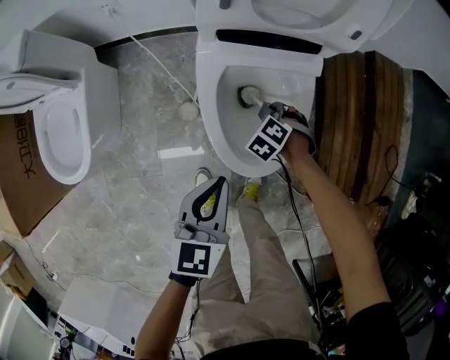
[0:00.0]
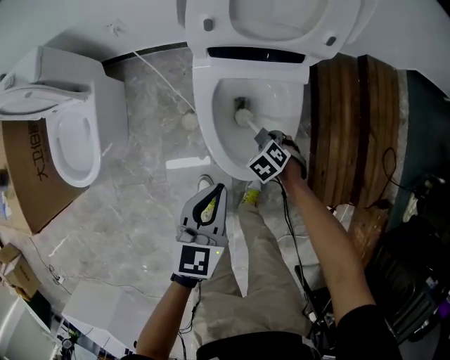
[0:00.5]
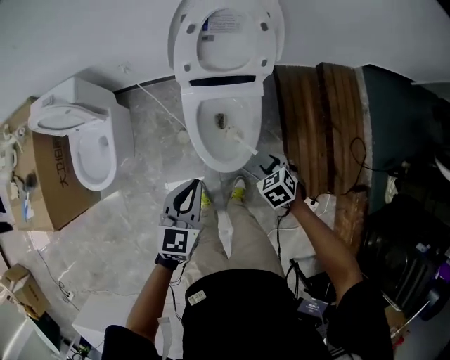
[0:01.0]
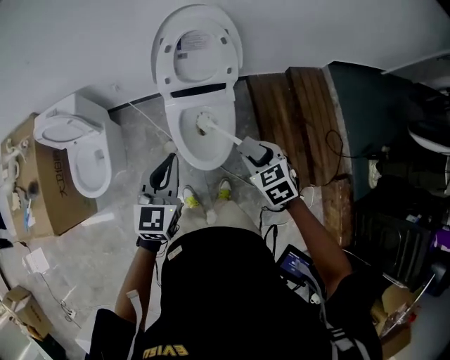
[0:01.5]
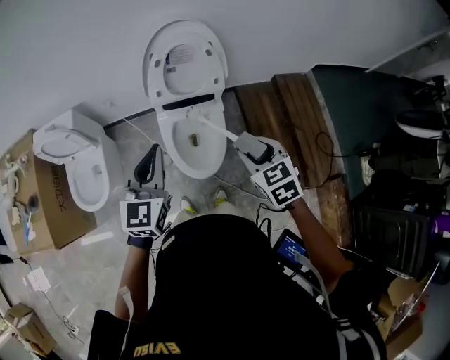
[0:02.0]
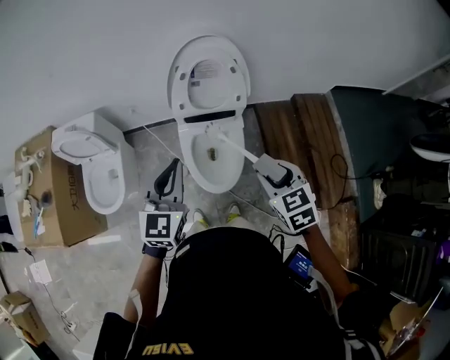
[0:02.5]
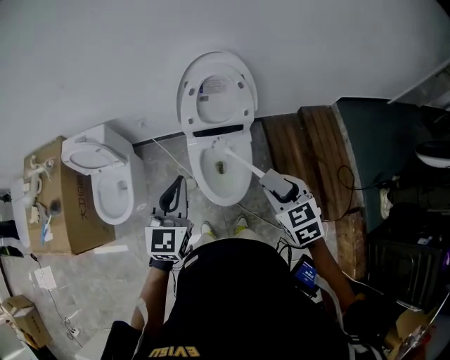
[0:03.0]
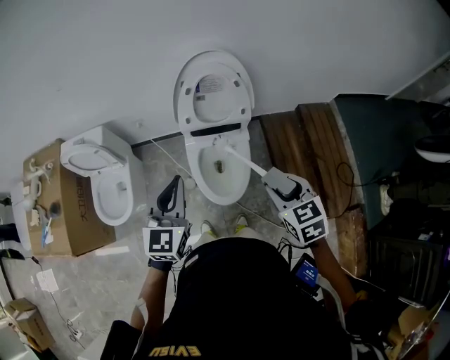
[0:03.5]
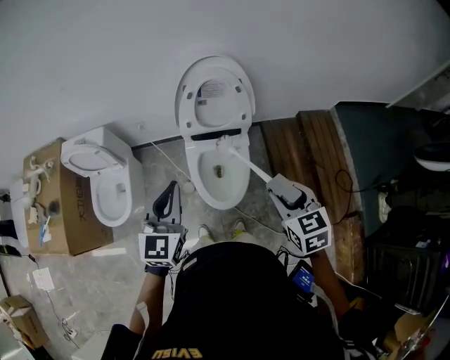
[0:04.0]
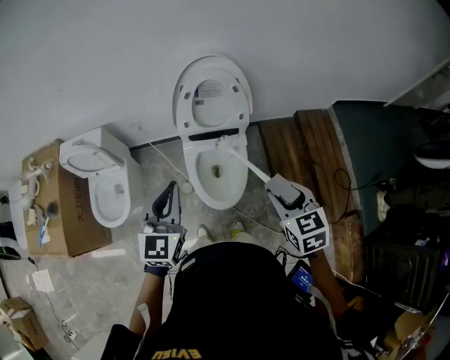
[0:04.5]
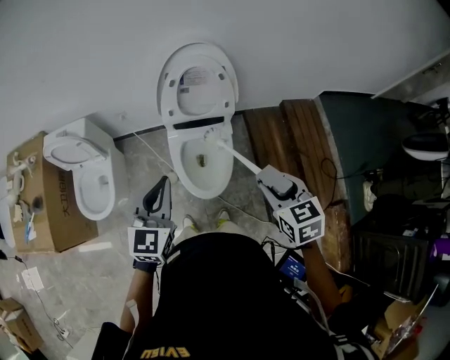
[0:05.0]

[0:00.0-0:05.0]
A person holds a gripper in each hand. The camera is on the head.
0:00.0 to 0:02.5: The left gripper is displaced upward by some 40 cm, and turns by about 30 degrees.

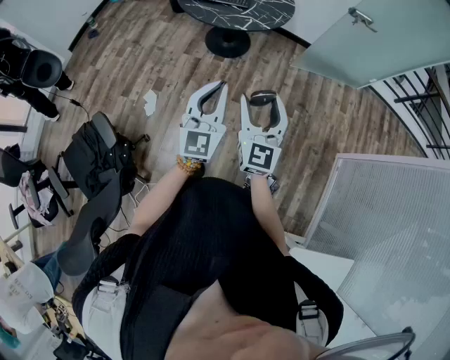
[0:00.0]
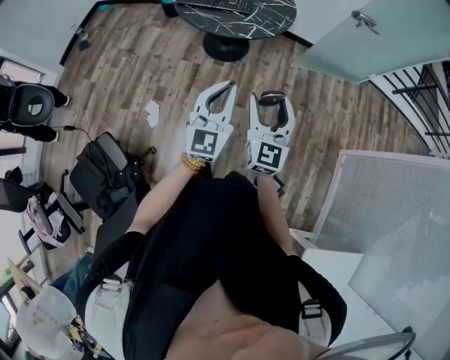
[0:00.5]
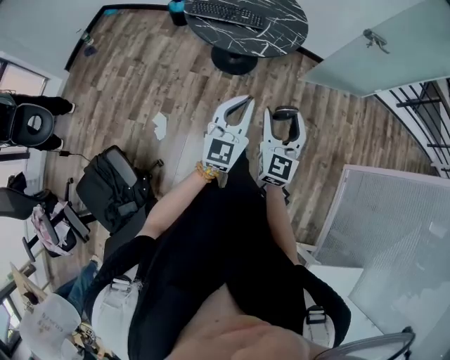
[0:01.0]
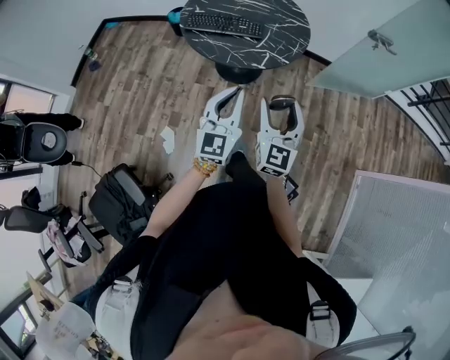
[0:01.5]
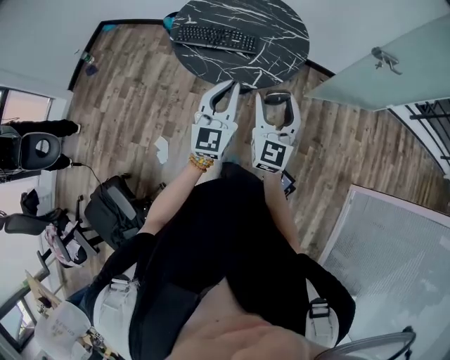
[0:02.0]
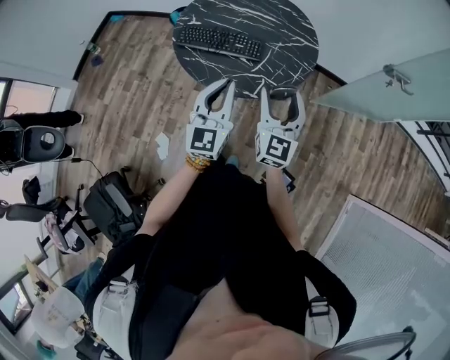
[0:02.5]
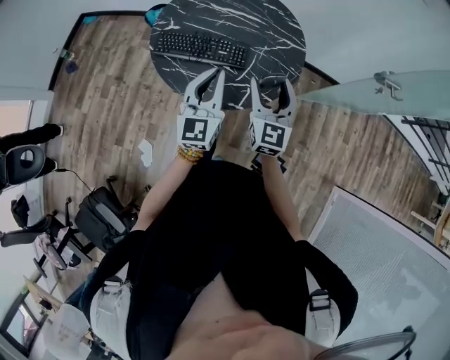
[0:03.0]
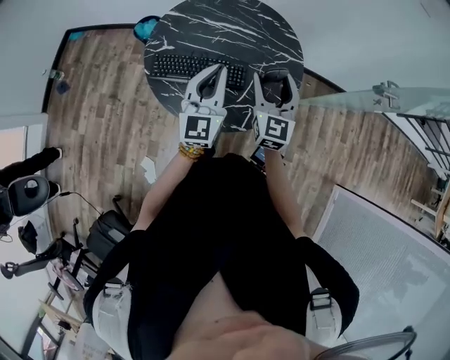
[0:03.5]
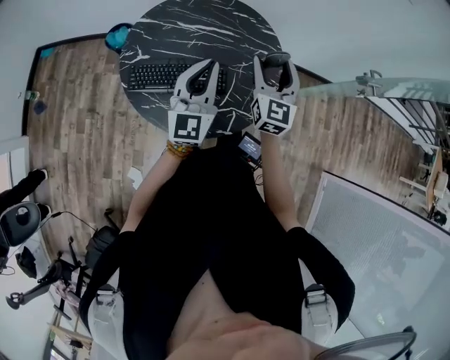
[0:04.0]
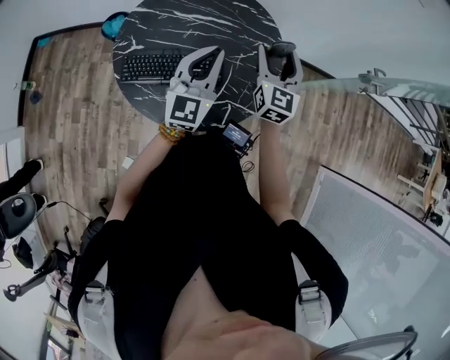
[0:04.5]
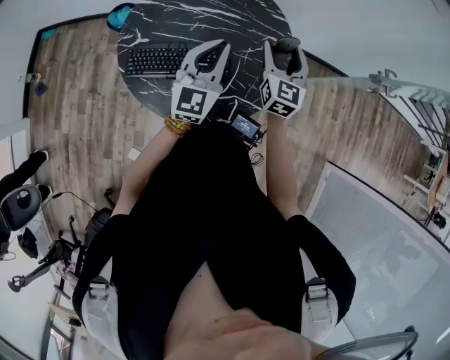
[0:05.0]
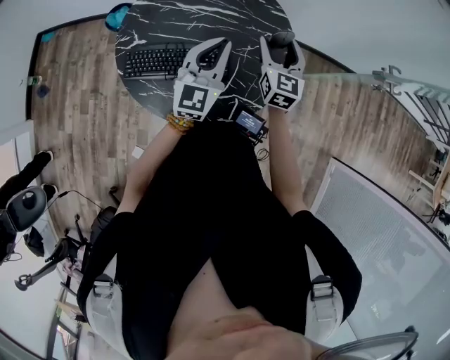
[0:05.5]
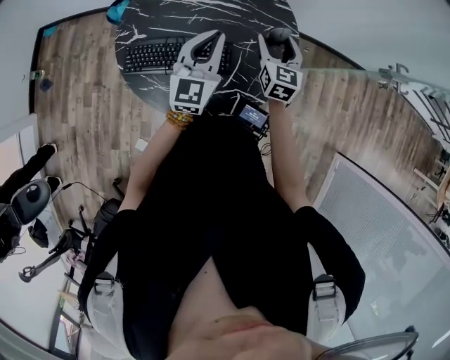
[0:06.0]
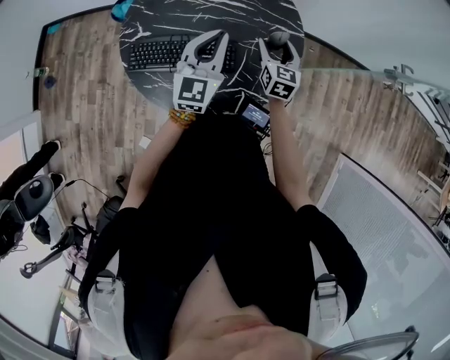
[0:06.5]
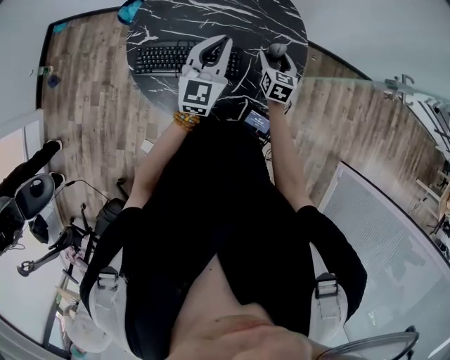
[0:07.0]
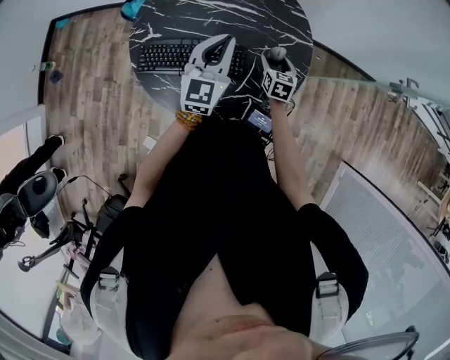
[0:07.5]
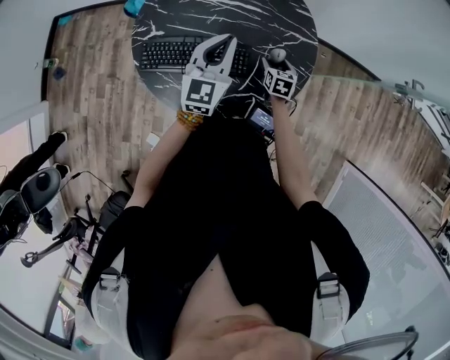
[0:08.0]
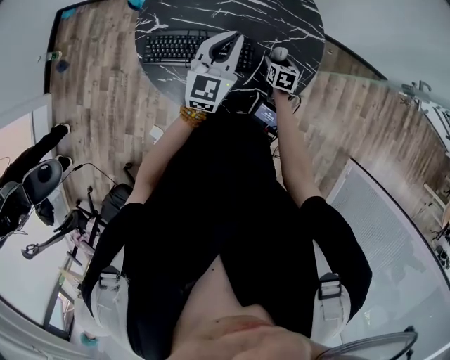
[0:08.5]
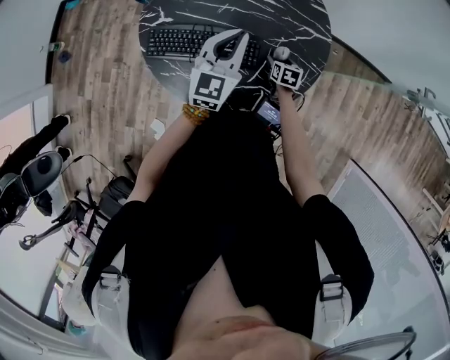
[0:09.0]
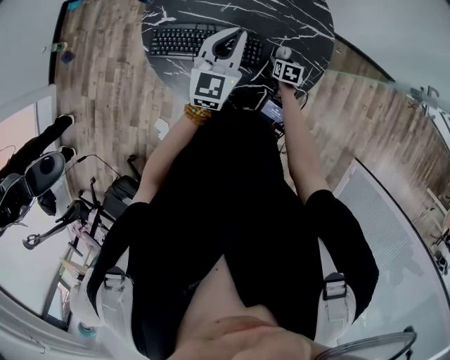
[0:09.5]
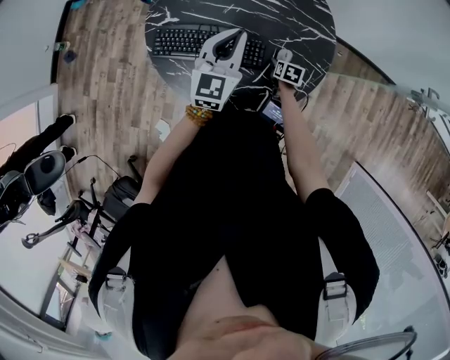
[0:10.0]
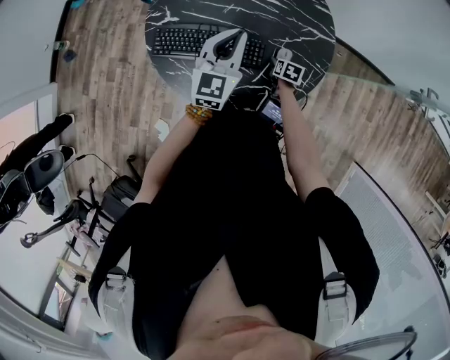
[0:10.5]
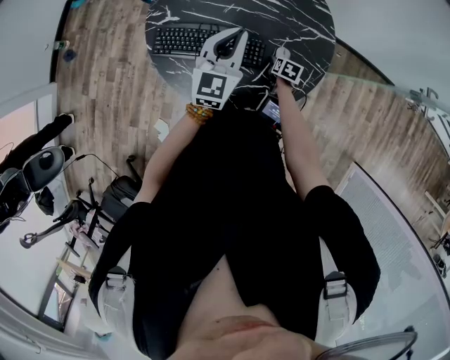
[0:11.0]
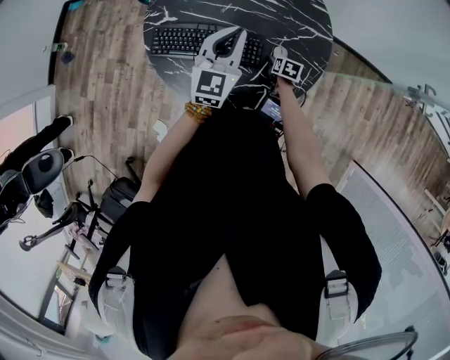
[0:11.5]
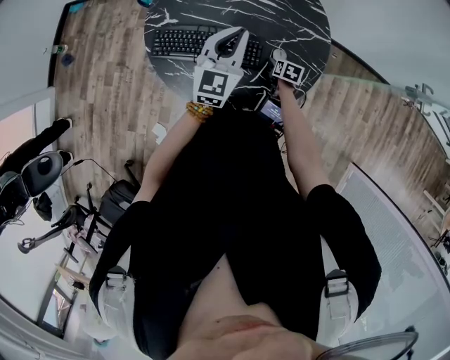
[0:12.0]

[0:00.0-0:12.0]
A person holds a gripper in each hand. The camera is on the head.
0:00.0 to 0:02.0: The two grippers go some 40 cm forward.
0:02.0 to 0:04.0: The two grippers go about 35 cm forward.
0:04.0 to 0:06.0: The right gripper moves downward and forward, approximately 15 cm. The left gripper shifts about 10 cm forward and downward.
0:06.0 to 0:08.0: The right gripper is displaced downward by roughly 20 cm, and turns by some 30 degrees.
0:08.0 to 0:10.0: The right gripper goes some 10 cm downward.
0:10.0 to 0:12.0: There are only small adjustments of the grippers.

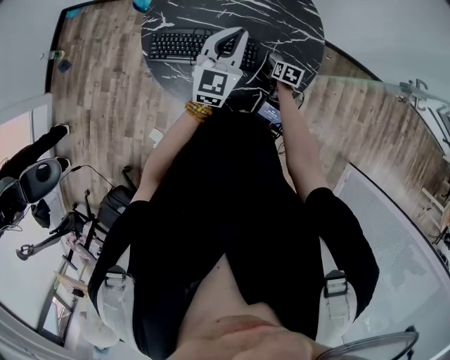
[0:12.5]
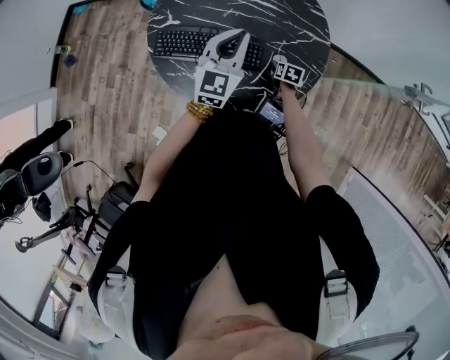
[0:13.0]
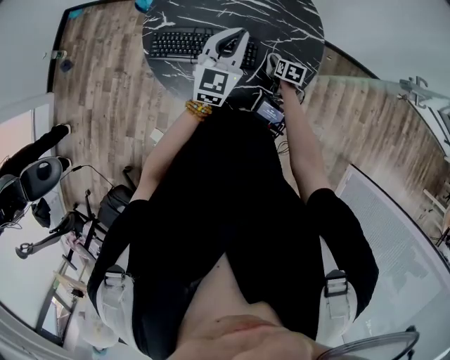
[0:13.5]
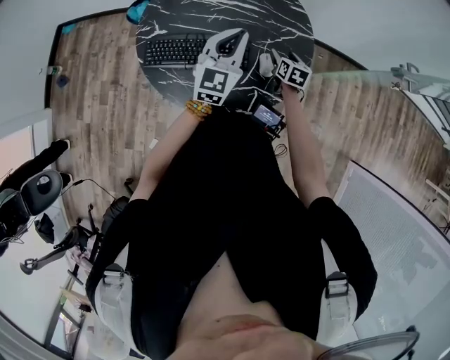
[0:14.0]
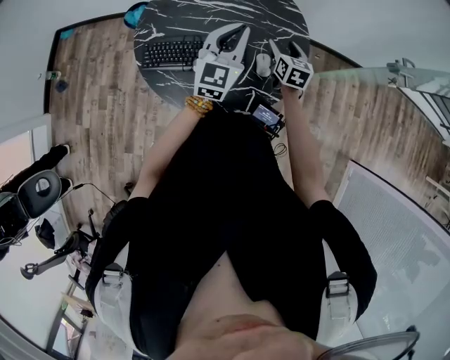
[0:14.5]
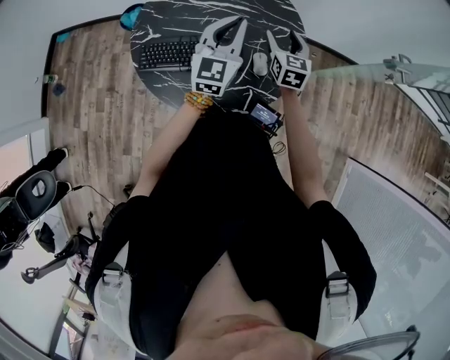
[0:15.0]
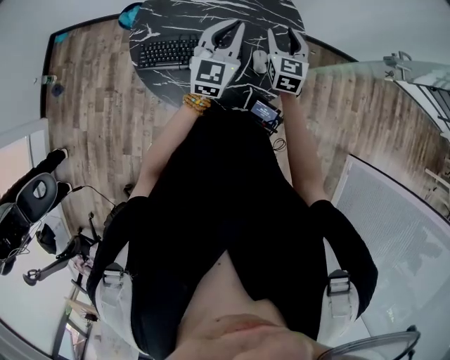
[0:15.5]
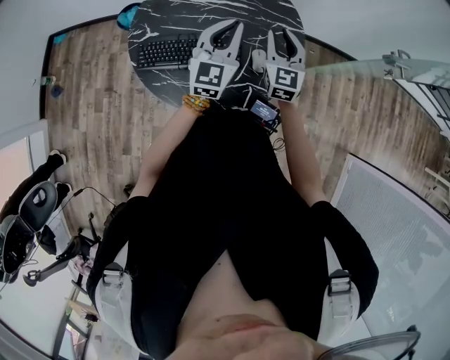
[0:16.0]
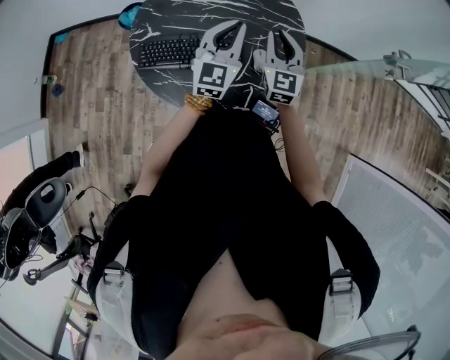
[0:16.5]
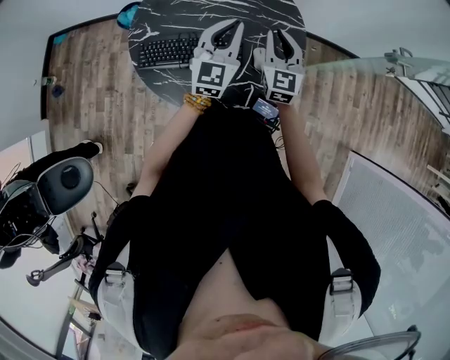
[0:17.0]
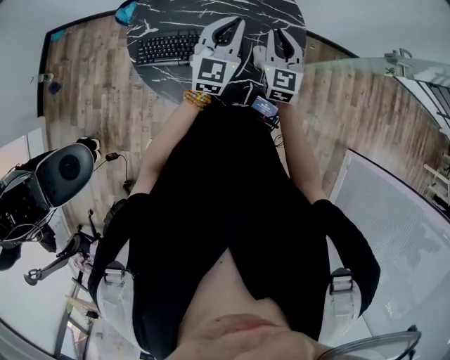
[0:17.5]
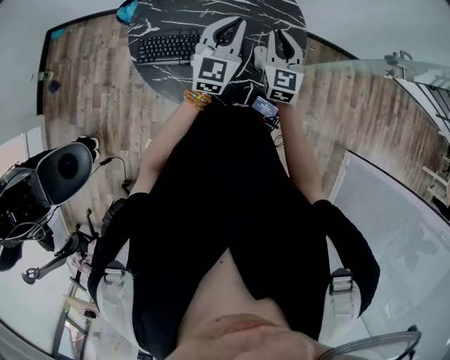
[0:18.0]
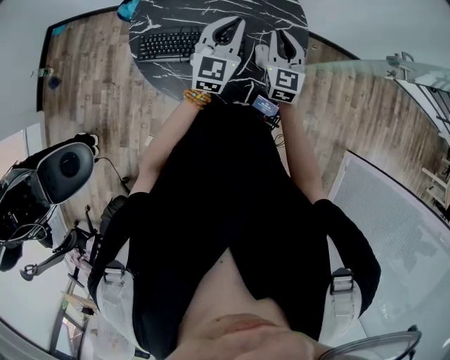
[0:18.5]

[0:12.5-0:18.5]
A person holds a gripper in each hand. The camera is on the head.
0:12.5 to 0:14.5: The right gripper travels upward by some 20 cm, and rotates some 30 degrees.
0:14.5 to 0:16.5: The right gripper goes approximately 15 cm upward, rotates approximately 30 degrees, and closes up.
0:16.5 to 0:18.5: The grippers move only a little.

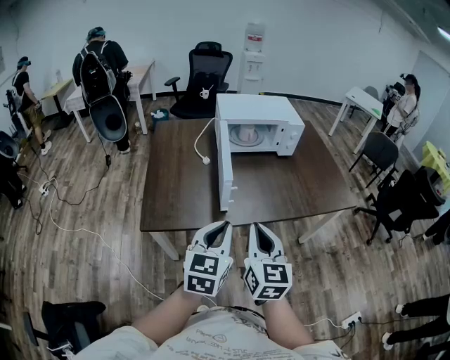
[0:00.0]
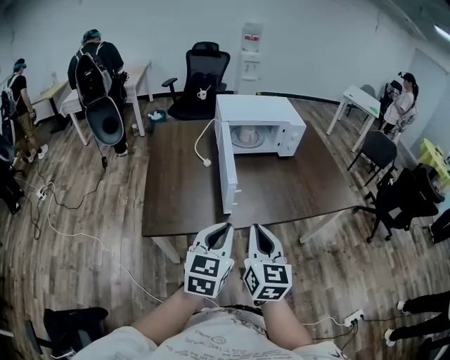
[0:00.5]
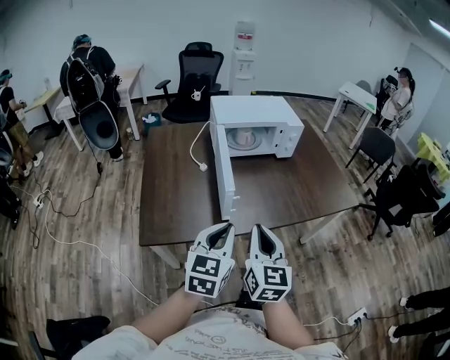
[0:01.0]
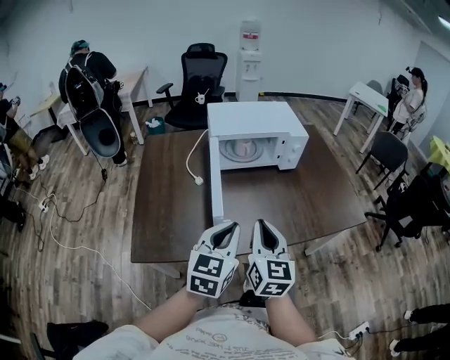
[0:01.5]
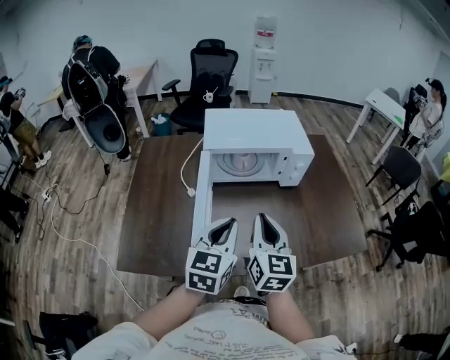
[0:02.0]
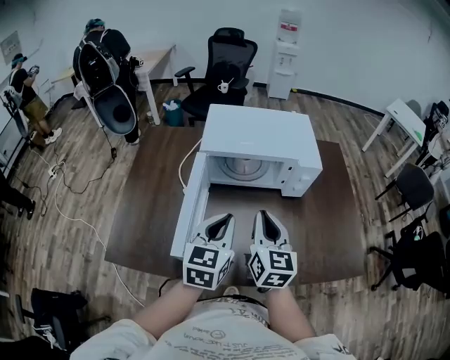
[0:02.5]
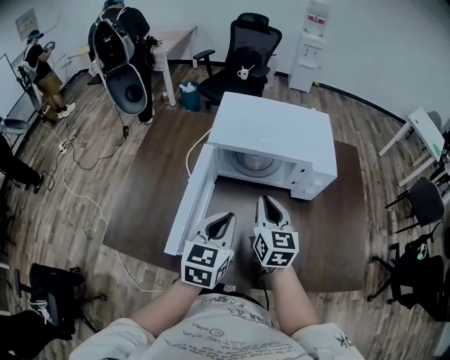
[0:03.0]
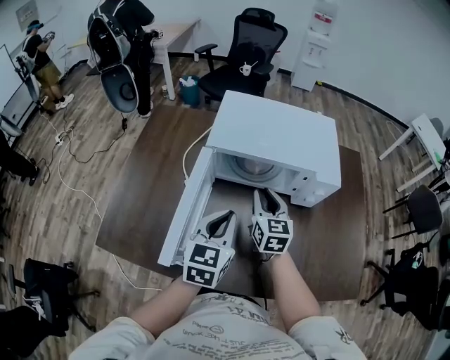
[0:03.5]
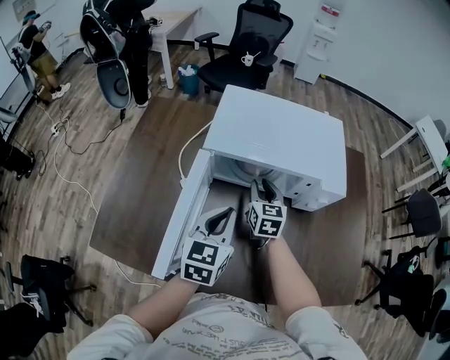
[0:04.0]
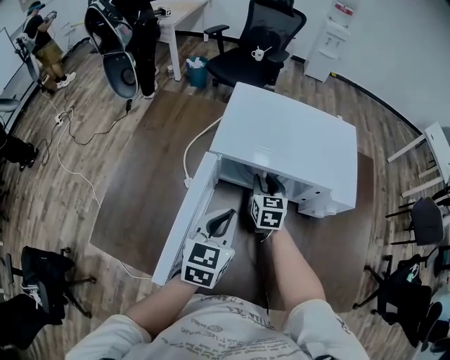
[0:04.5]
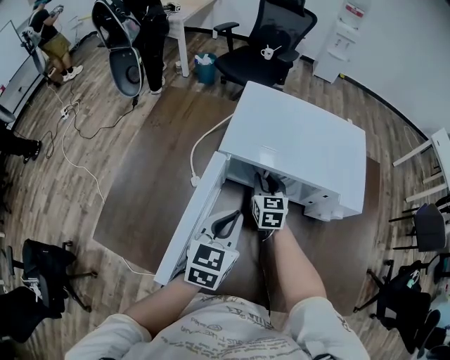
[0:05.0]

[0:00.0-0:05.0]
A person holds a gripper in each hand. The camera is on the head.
0:00.0 to 0:02.5: The two grippers go approximately 35 cm forward.
0:02.5 to 0:05.0: The left gripper travels forward and downward by approximately 15 cm. The right gripper is displaced forward and downward by approximately 30 cm, and swivels about 30 degrees.
